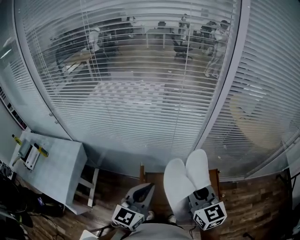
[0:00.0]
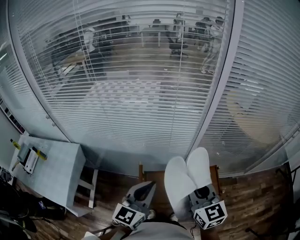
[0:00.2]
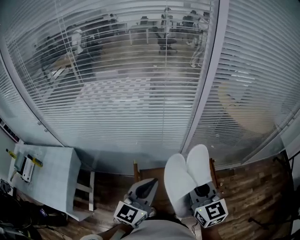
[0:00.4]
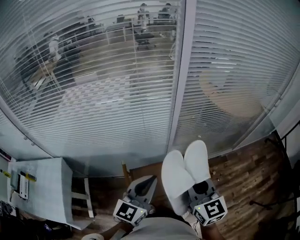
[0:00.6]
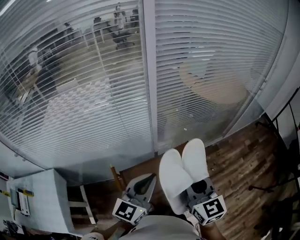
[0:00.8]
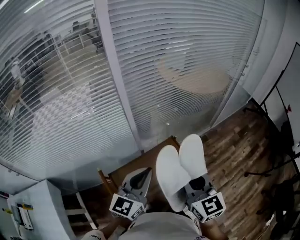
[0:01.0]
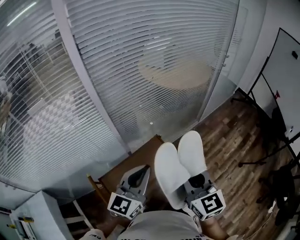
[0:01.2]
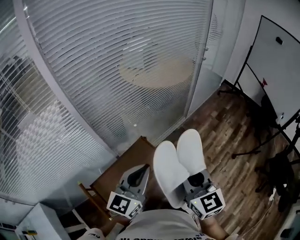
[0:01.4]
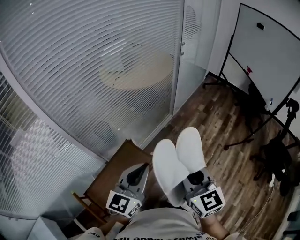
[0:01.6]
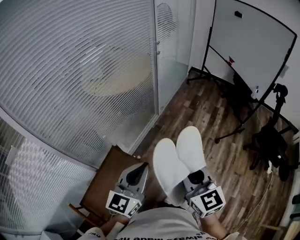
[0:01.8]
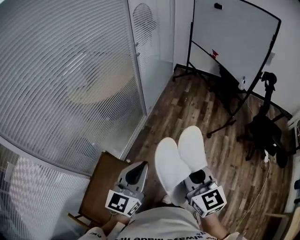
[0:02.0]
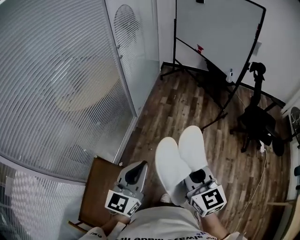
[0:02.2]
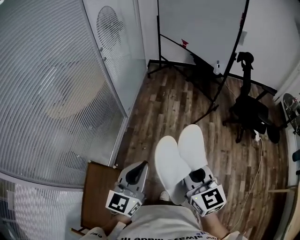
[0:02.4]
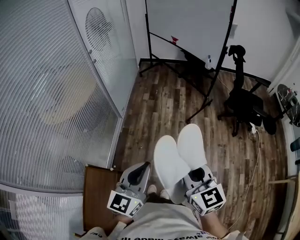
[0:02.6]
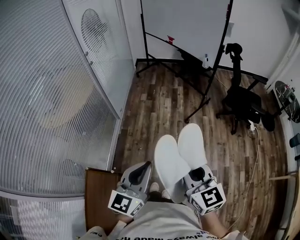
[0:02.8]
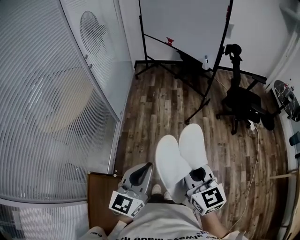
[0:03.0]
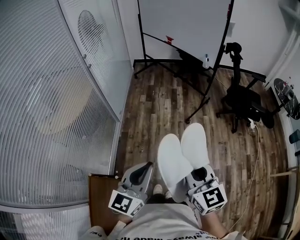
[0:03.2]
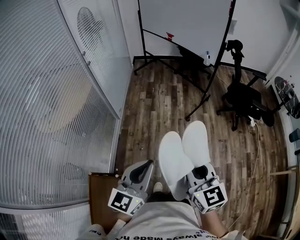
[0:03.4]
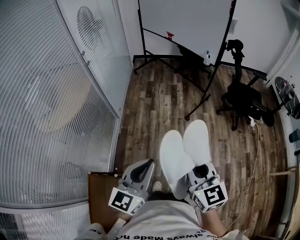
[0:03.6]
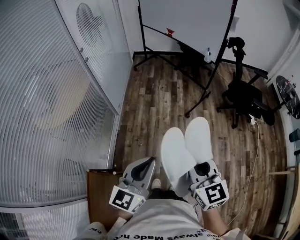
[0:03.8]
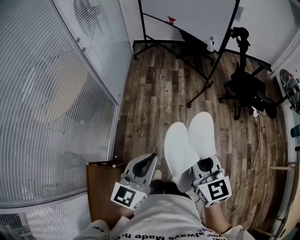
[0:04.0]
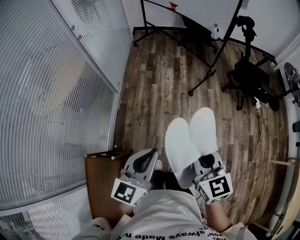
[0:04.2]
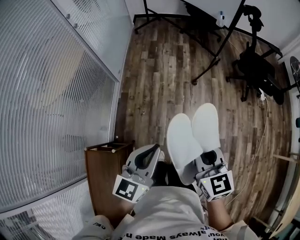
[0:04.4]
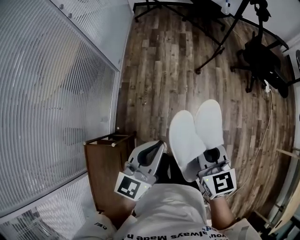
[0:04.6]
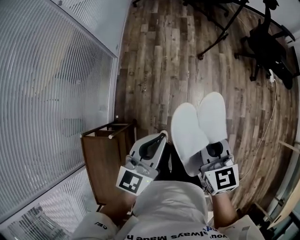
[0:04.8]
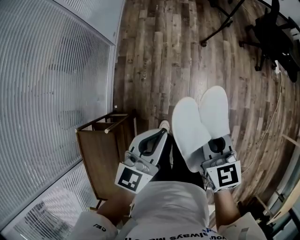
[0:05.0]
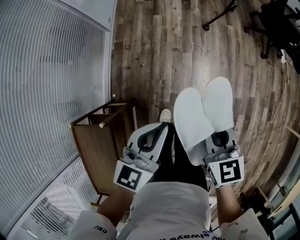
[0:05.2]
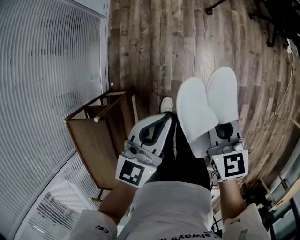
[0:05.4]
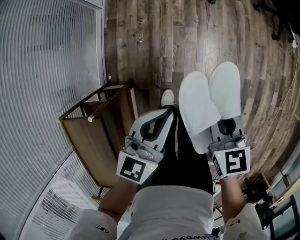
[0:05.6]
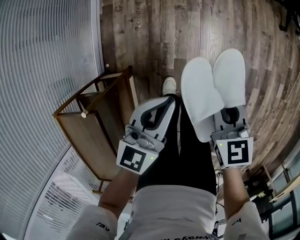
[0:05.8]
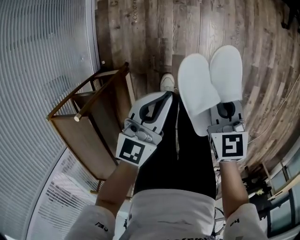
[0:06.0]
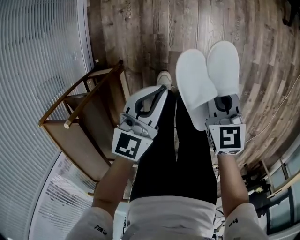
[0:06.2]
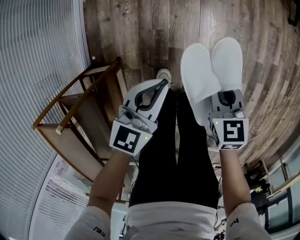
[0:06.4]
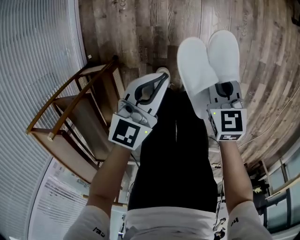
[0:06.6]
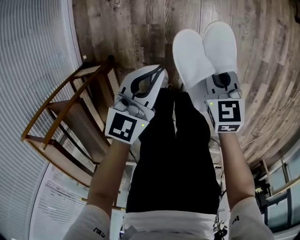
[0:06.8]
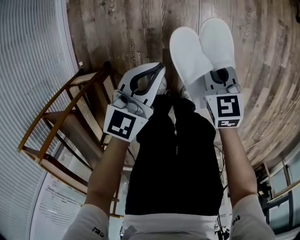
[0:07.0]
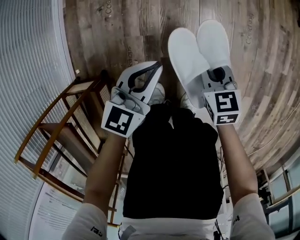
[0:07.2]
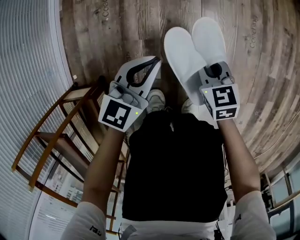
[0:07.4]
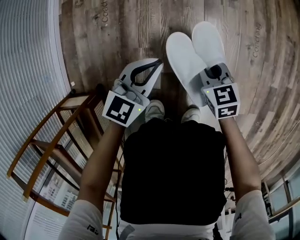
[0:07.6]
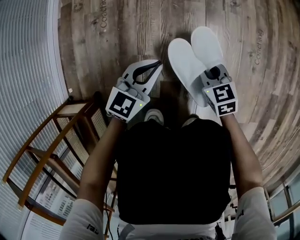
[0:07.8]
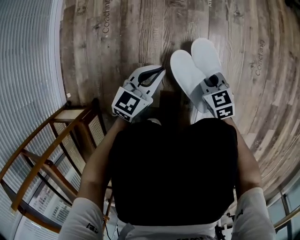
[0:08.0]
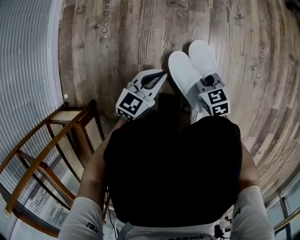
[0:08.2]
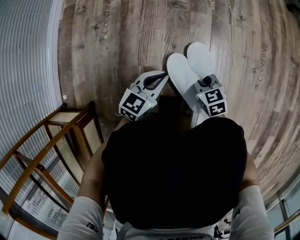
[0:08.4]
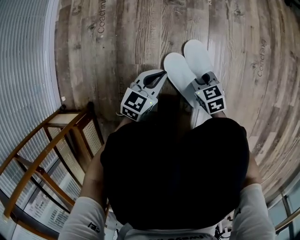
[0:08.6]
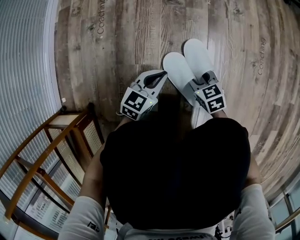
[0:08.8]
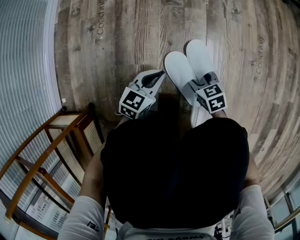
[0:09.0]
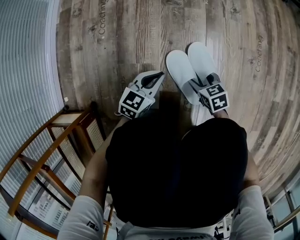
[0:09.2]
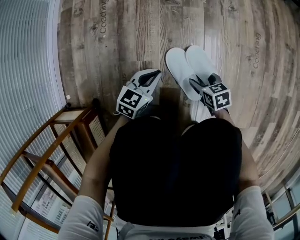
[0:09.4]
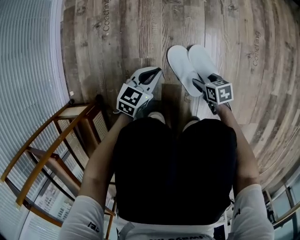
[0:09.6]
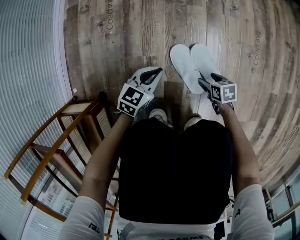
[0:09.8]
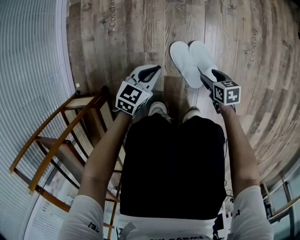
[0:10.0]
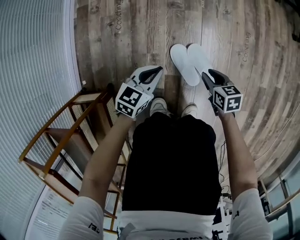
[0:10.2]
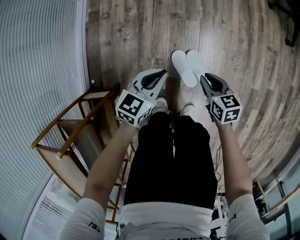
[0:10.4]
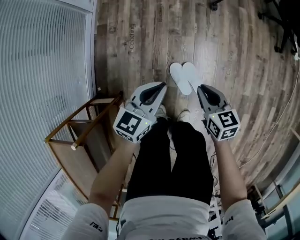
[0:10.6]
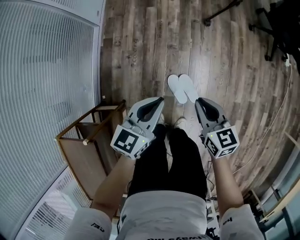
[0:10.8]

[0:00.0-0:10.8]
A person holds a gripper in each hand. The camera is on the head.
0:00.0 to 0:01.6: The pair of grippers is taken roughly 40 cm. The left gripper changes its angle by about 50 degrees; the right gripper changes its angle by some 50 degrees.
0:01.6 to 0:03.0: The right gripper ends up approximately 25 cm from where it was, and changes its angle by roughly 40 degrees, while the left gripper changes place by approximately 30 cm, and swivels some 40 degrees.
0:03.0 to 0:04.6: The grippers both shift downward by some 15 cm.
0:04.6 to 0:06.2: Both grippers travel together downward, about 40 cm. The right gripper turns by approximately 20 degrees.
0:06.2 to 0:07.8: The grippers both shift downward by some 40 cm.
0:07.8 to 0:09.2: Both grippers travel together downward, roughly 10 cm. The right gripper opens.
0:09.2 to 0:10.8: The two grippers go about 60 cm upward. The right gripper rotates some 20 degrees, and closes its fingers.

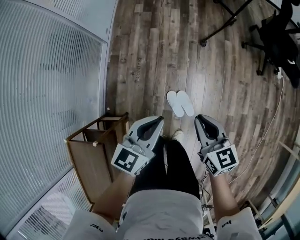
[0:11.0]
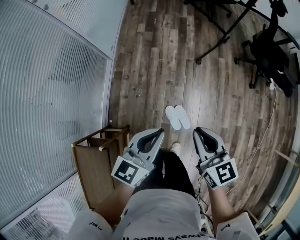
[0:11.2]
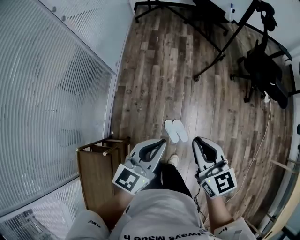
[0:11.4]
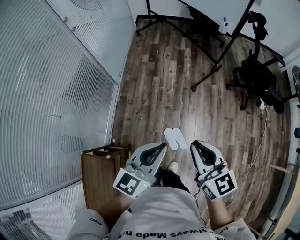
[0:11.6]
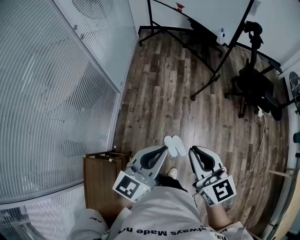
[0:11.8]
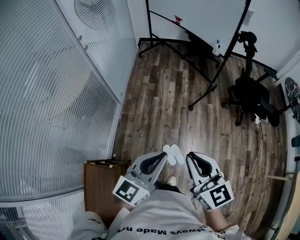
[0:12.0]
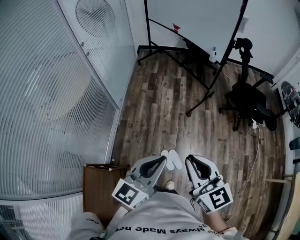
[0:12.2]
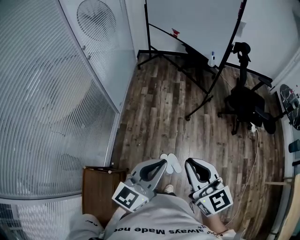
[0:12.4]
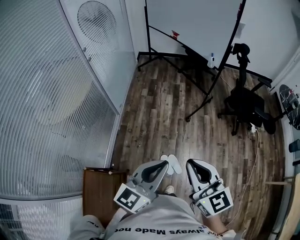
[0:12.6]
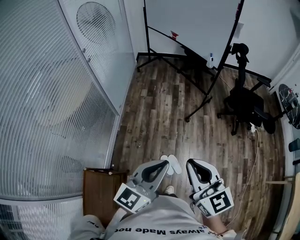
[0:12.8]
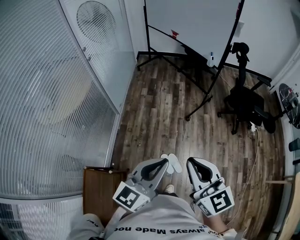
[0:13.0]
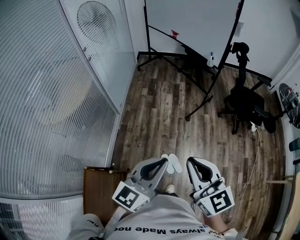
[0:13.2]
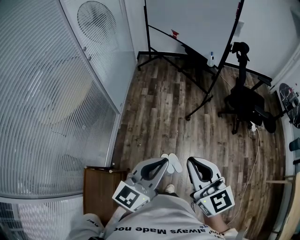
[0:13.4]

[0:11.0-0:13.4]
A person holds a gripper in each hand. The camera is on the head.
0:11.0 to 0:12.2: Both grippers travel together upward, approximately 35 cm. The right gripper changes its angle by some 20 degrees; the left gripper swivels roughly 20 degrees.
0:12.2 to 0:13.4: The grippers move only a little.

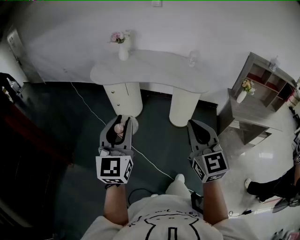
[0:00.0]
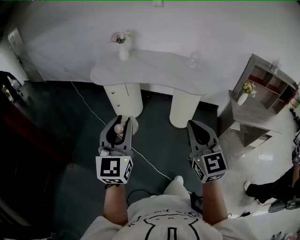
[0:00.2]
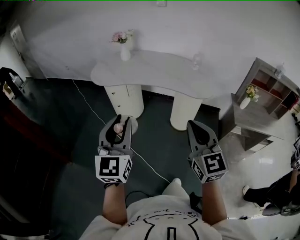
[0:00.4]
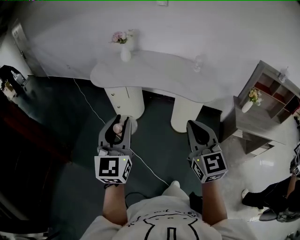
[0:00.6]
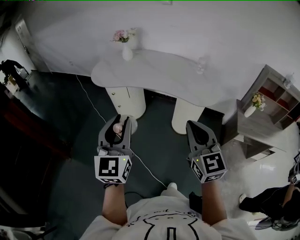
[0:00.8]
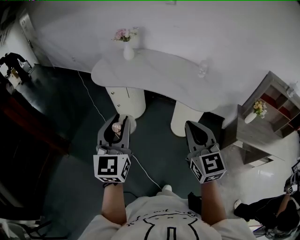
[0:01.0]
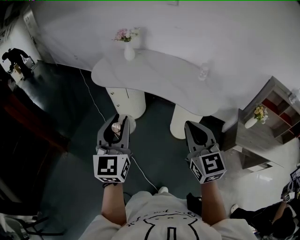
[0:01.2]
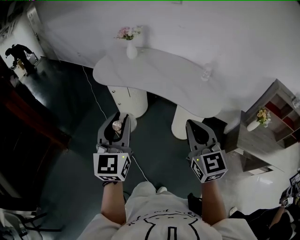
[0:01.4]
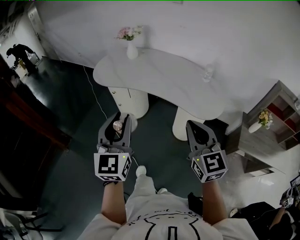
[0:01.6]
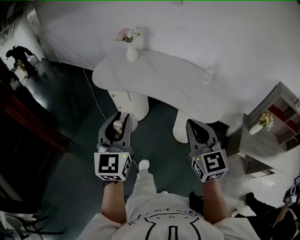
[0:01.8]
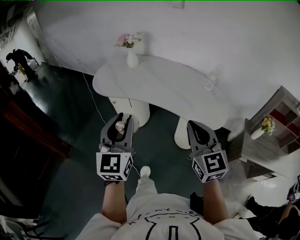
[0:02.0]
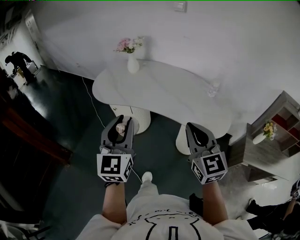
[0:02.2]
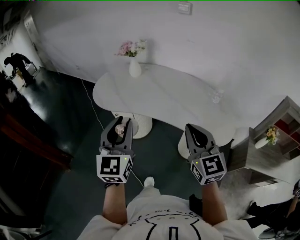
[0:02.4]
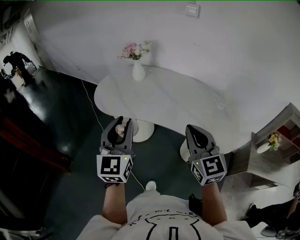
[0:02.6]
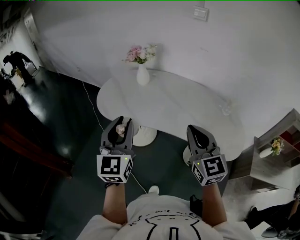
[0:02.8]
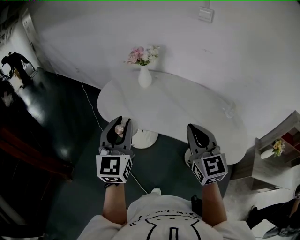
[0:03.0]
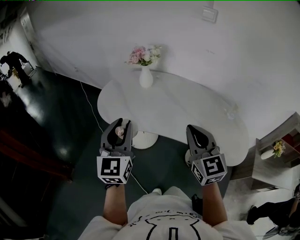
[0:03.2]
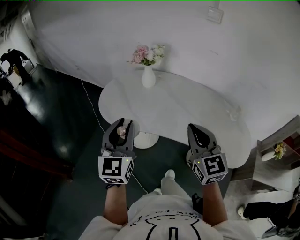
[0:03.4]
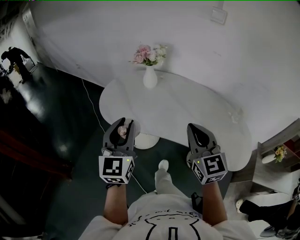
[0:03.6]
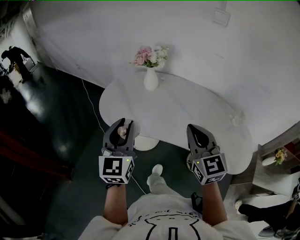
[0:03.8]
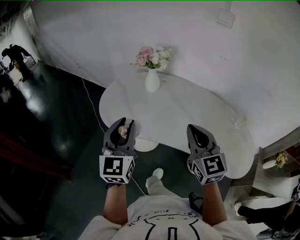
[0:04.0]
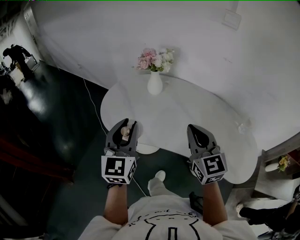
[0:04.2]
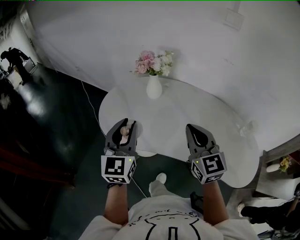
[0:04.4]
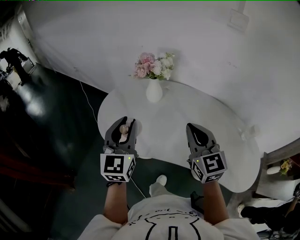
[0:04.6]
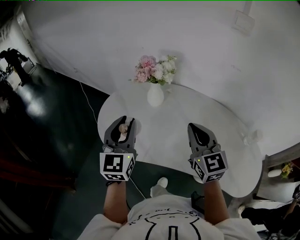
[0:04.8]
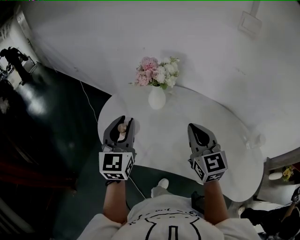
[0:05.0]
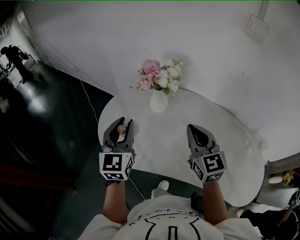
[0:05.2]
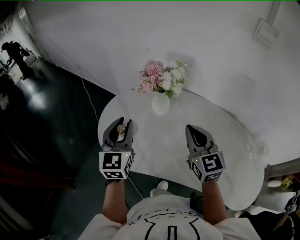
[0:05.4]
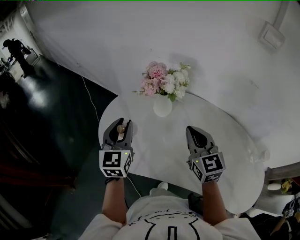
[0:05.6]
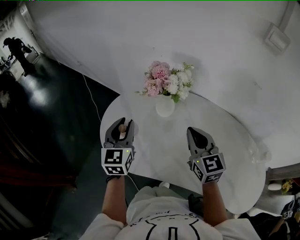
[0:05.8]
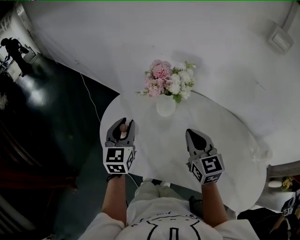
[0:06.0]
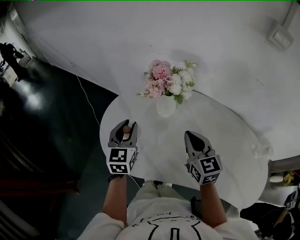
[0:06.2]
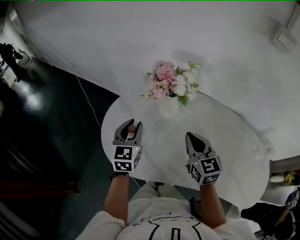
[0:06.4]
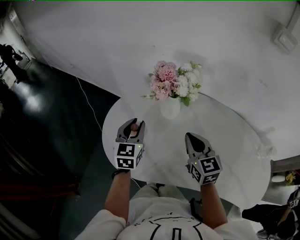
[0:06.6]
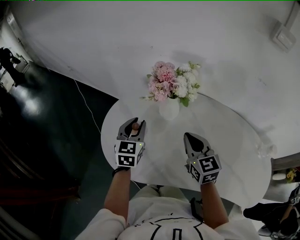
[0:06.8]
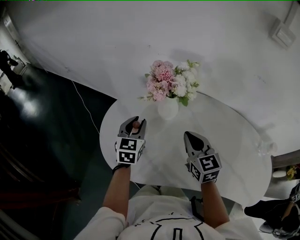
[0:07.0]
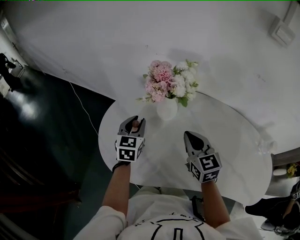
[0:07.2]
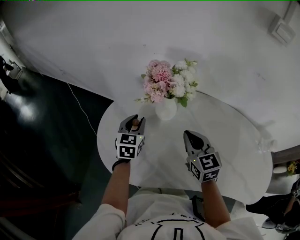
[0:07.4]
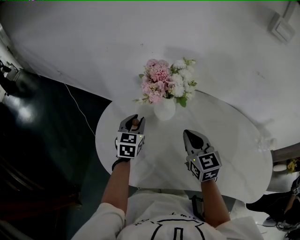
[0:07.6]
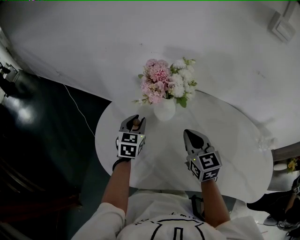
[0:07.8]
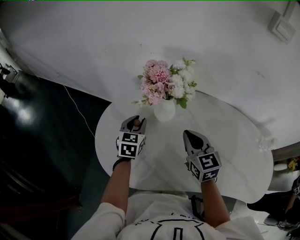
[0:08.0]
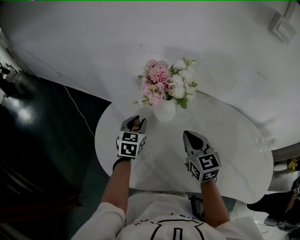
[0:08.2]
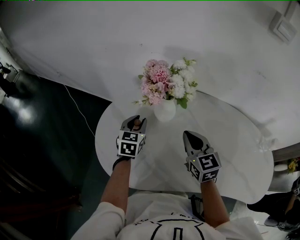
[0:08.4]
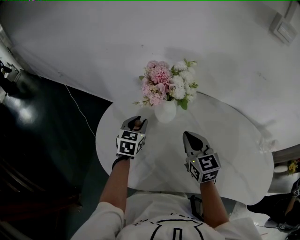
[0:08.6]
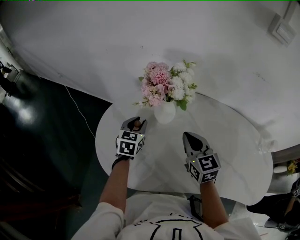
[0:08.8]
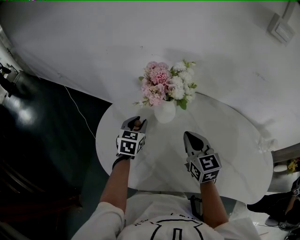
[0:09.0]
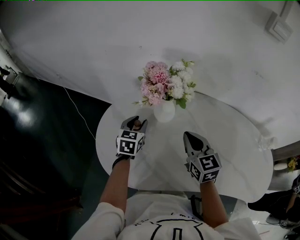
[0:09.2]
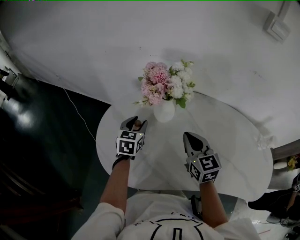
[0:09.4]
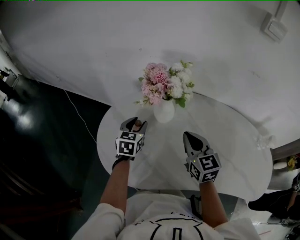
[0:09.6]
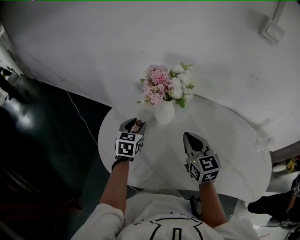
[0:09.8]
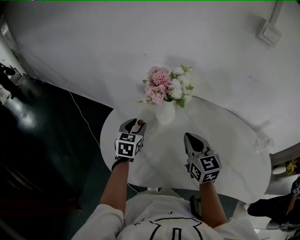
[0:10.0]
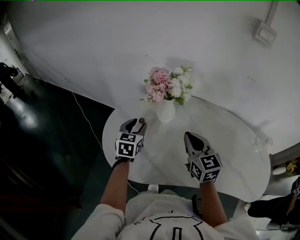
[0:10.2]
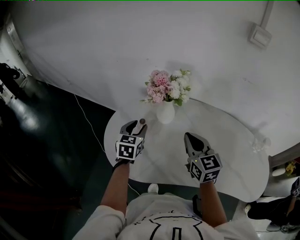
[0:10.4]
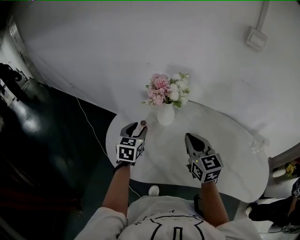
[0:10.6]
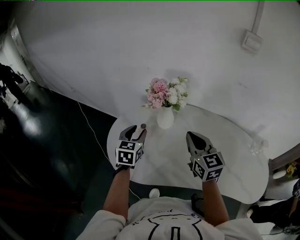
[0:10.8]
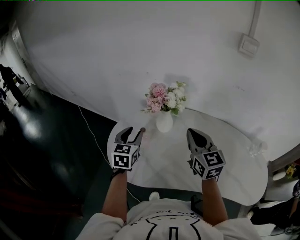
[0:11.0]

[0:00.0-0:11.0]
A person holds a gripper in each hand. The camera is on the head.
0:00.0 to 0:01.6: The two grippers go some 25 cm forward and to the right.
0:01.6 to 0:03.2: The grippers both shift forward and to the left by approximately 35 cm.
0:03.2 to 0:04.8: Both grippers move forward, about 25 cm.
0:04.8 to 0:06.2: Both grippers travel together forward and downward, about 20 cm.
0:06.2 to 0:07.8: The right gripper goes roughly 5 cm downward, while the left gripper shifts approximately 15 cm downward and forward.
0:07.8 to 0:09.4: The grippers make only small movements.
0:09.4 to 0:11.0: The left gripper travels upward and backward by roughly 20 cm, while the right gripper goes some 15 cm upward.
